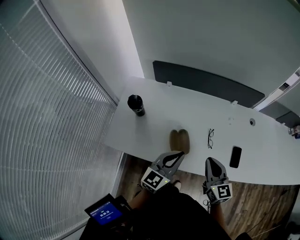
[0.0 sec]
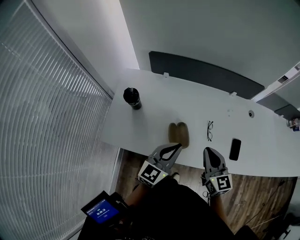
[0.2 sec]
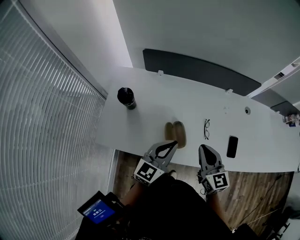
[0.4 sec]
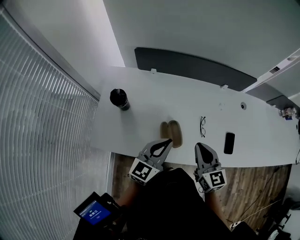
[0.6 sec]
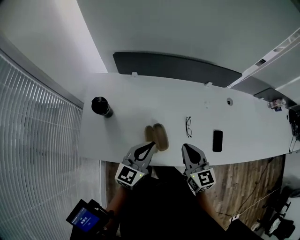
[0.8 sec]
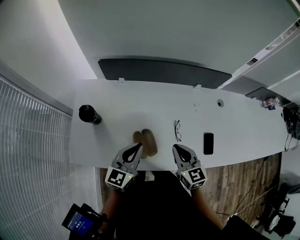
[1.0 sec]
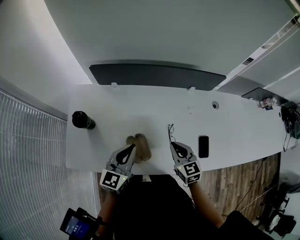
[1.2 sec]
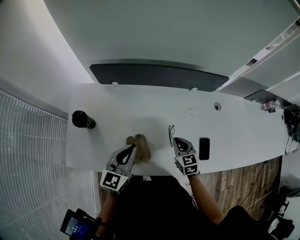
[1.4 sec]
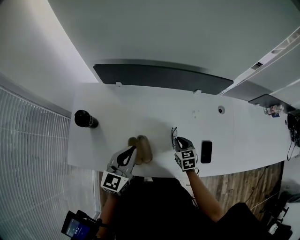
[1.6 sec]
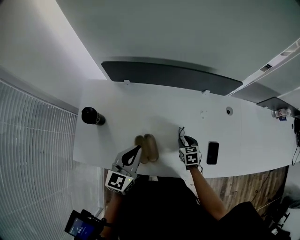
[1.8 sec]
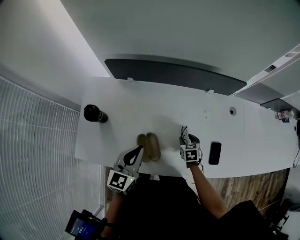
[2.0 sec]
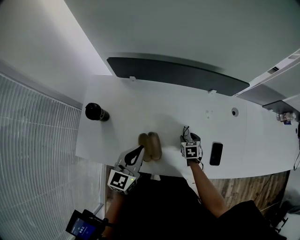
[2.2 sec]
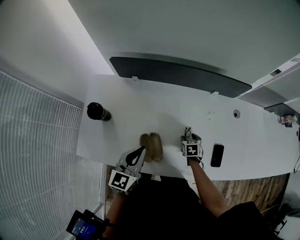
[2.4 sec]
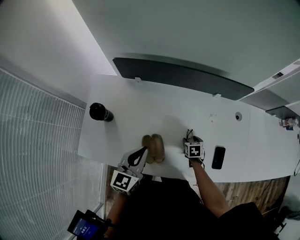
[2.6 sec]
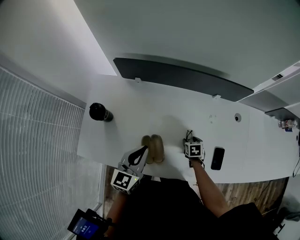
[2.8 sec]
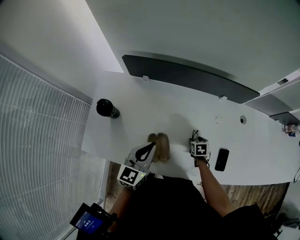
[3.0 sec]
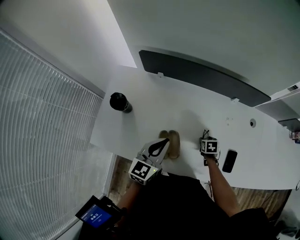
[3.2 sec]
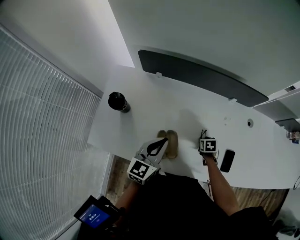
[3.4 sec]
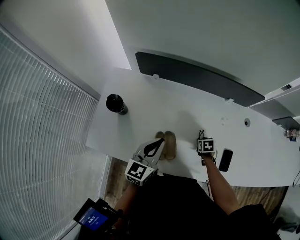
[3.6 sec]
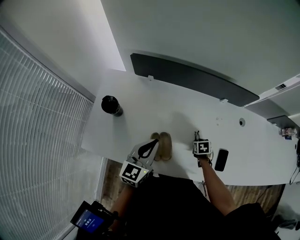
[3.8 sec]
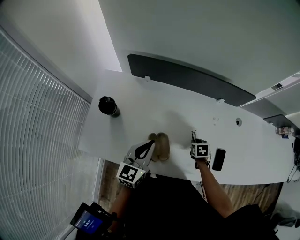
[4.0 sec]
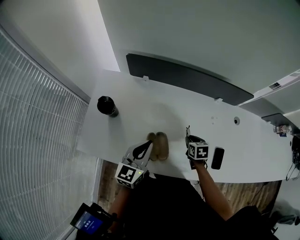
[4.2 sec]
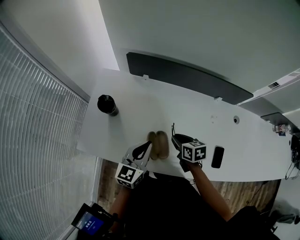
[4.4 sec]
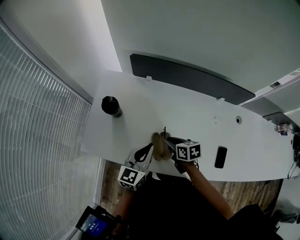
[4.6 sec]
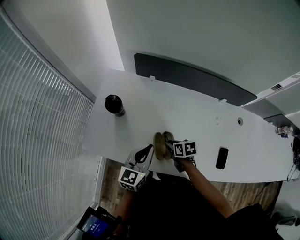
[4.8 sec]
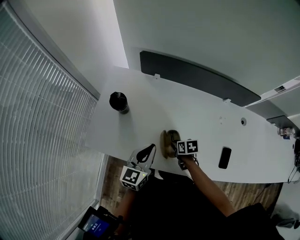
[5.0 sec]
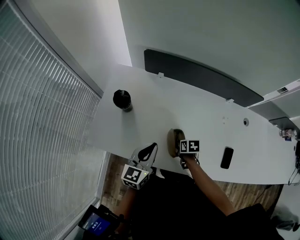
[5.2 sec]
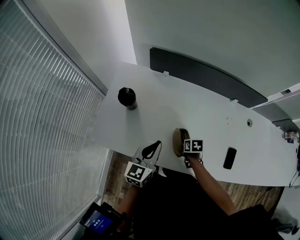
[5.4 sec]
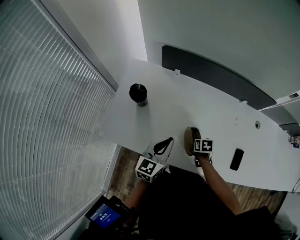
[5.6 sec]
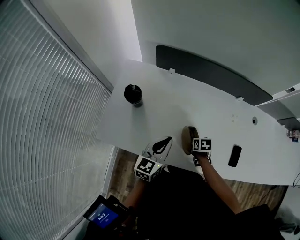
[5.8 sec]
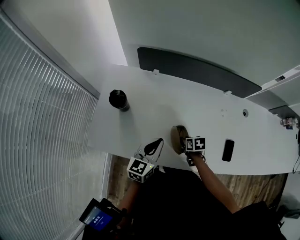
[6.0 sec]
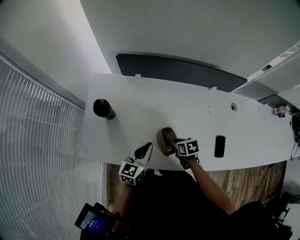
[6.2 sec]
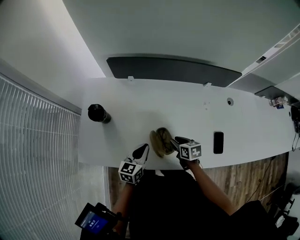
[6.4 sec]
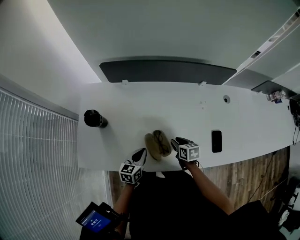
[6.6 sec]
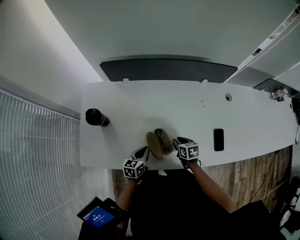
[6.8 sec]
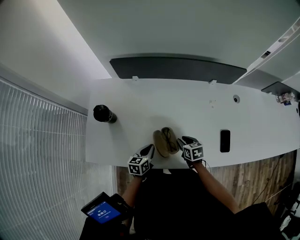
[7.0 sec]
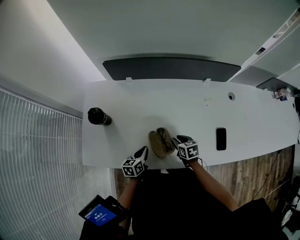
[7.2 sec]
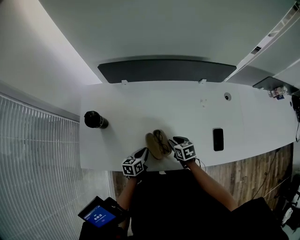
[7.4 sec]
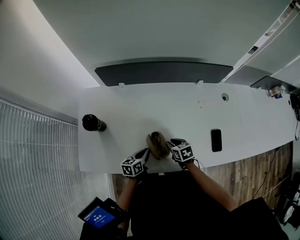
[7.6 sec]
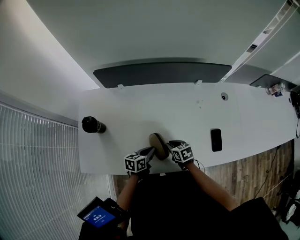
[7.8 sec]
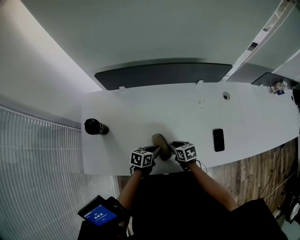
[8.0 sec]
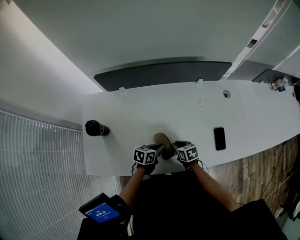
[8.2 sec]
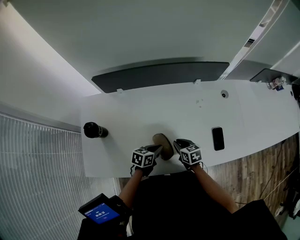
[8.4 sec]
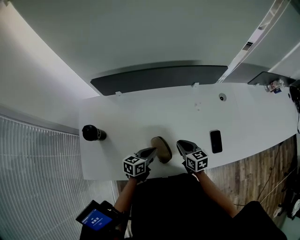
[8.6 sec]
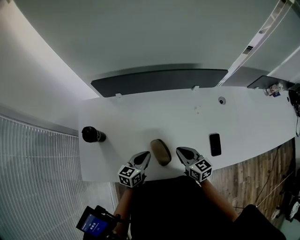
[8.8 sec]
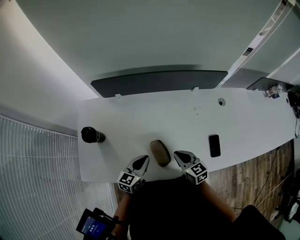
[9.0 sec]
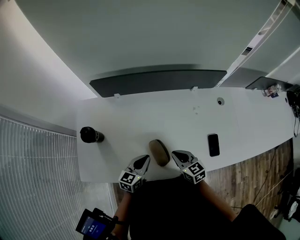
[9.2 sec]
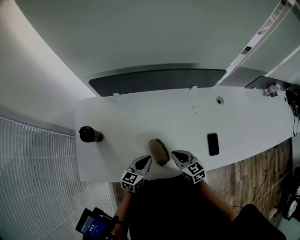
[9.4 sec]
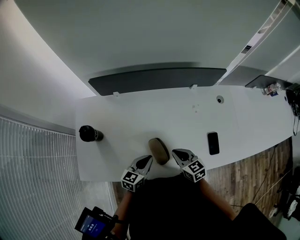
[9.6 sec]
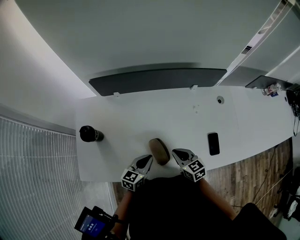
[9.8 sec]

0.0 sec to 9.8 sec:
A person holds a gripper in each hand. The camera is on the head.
0.0 sec to 1.4 sec: The left gripper travels forward by about 10 cm, while the right gripper shifts roughly 20 cm downward and forward, and swivels approximately 20 degrees.
1.4 sec to 2.8 sec: The right gripper heads downward, covering some 15 cm, changes its angle by approximately 30 degrees, and opens its fingers.
2.8 sec to 4.2 sec: The right gripper goes approximately 10 cm upward and to the left, and closes.
4.2 sec to 5.6 sec: The left gripper moves roughly 5 cm, while the right gripper travels to the left and downward by about 10 cm.
5.6 sec to 7.0 sec: The left gripper heads downward, covering approximately 20 cm, and turns by approximately 30 degrees, while the right gripper moves about 5 cm.
7.0 sec to 8.4 sec: The left gripper is displaced to the right by approximately 10 cm, and swivels some 30 degrees.
8.4 sec to 9.8 sec: The grippers both shift upward by roughly 5 cm. The left gripper turns by about 30 degrees.

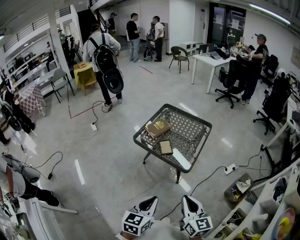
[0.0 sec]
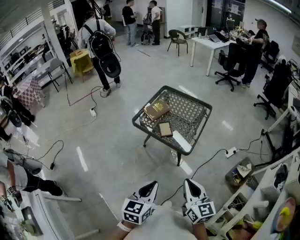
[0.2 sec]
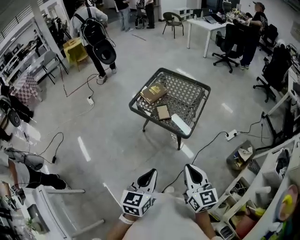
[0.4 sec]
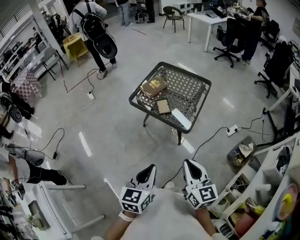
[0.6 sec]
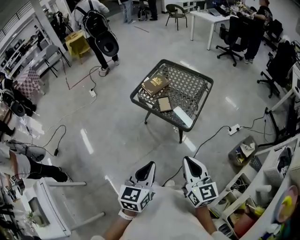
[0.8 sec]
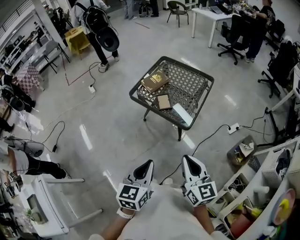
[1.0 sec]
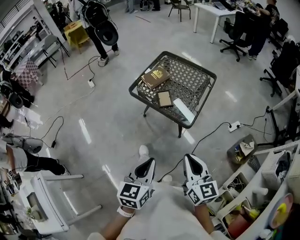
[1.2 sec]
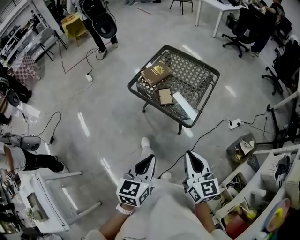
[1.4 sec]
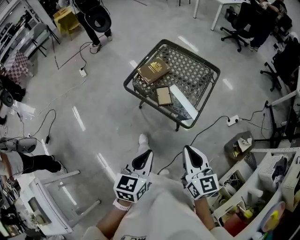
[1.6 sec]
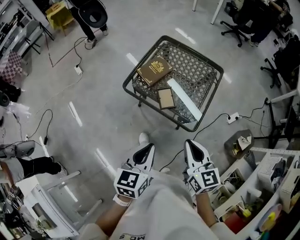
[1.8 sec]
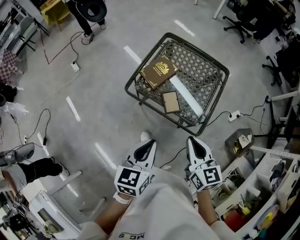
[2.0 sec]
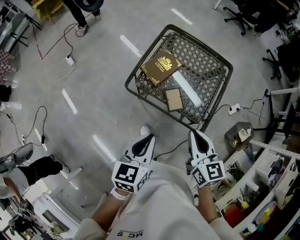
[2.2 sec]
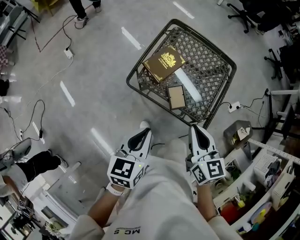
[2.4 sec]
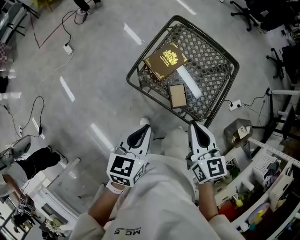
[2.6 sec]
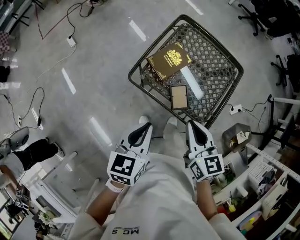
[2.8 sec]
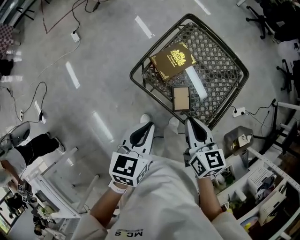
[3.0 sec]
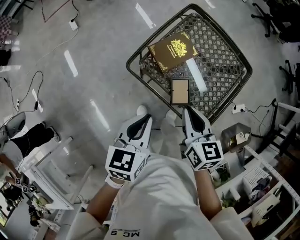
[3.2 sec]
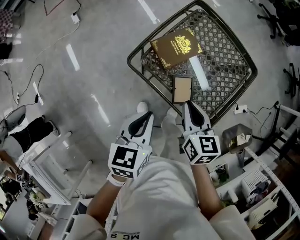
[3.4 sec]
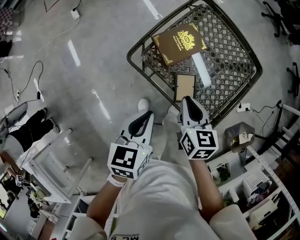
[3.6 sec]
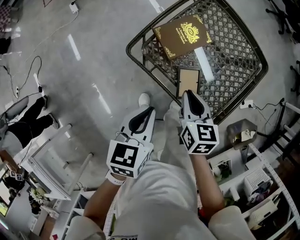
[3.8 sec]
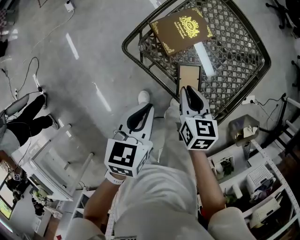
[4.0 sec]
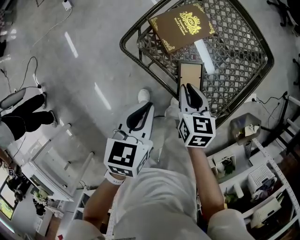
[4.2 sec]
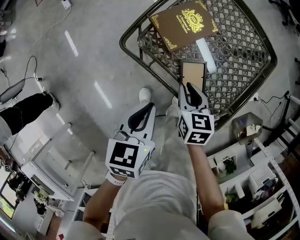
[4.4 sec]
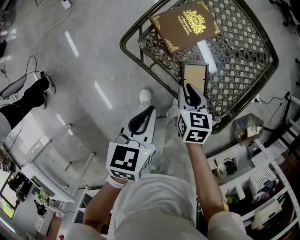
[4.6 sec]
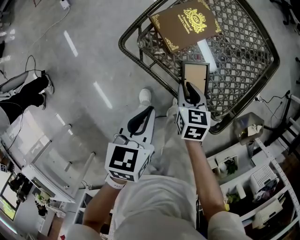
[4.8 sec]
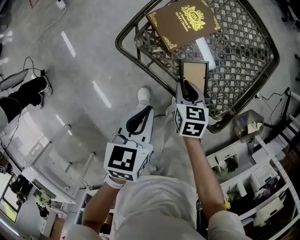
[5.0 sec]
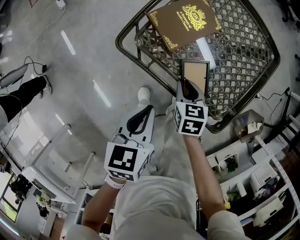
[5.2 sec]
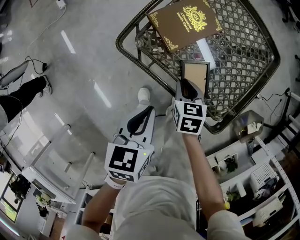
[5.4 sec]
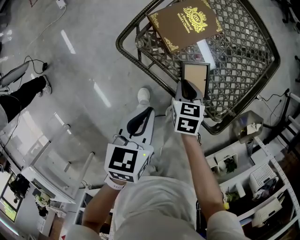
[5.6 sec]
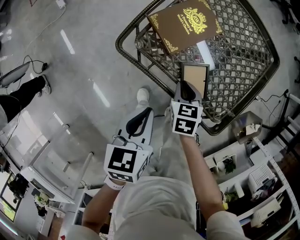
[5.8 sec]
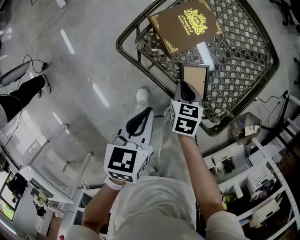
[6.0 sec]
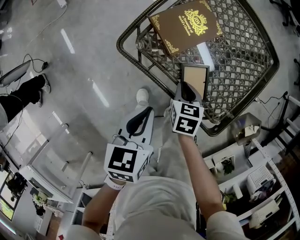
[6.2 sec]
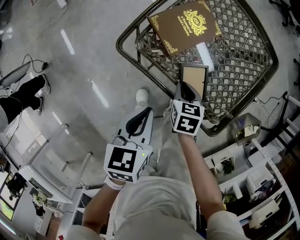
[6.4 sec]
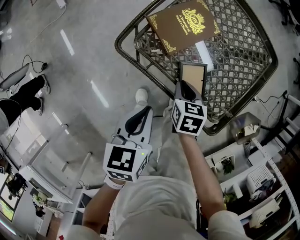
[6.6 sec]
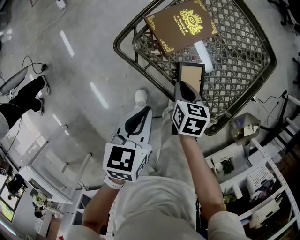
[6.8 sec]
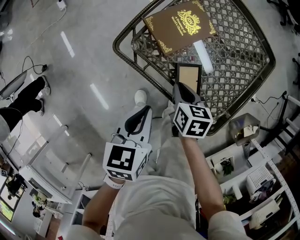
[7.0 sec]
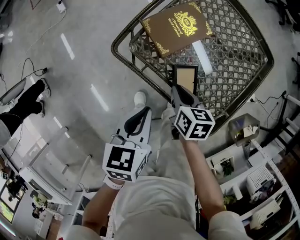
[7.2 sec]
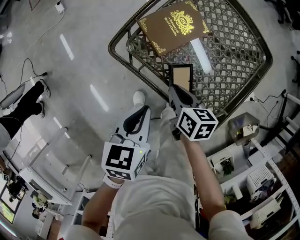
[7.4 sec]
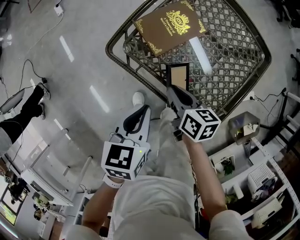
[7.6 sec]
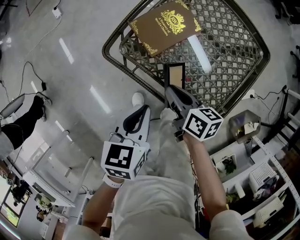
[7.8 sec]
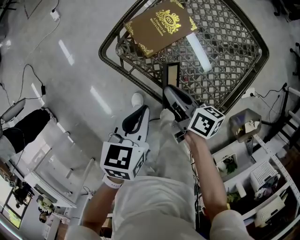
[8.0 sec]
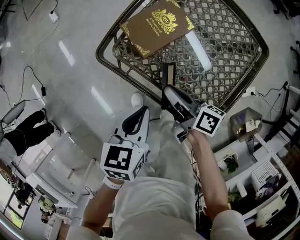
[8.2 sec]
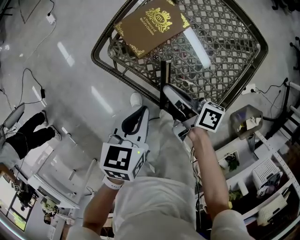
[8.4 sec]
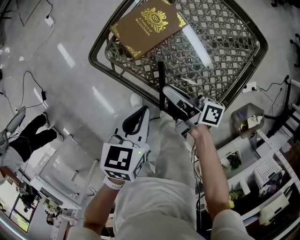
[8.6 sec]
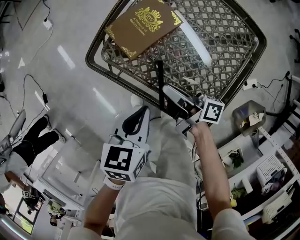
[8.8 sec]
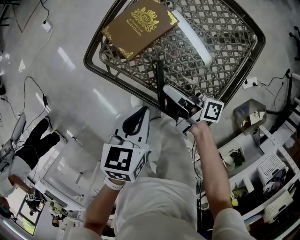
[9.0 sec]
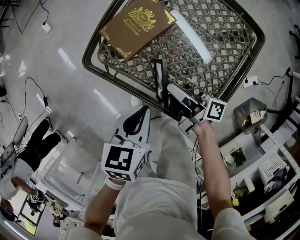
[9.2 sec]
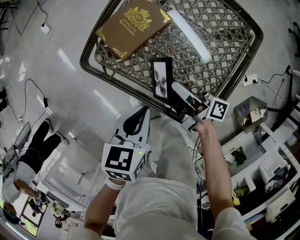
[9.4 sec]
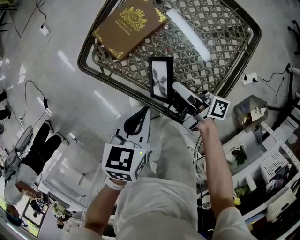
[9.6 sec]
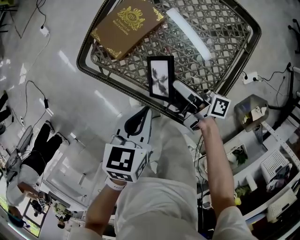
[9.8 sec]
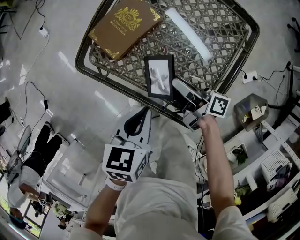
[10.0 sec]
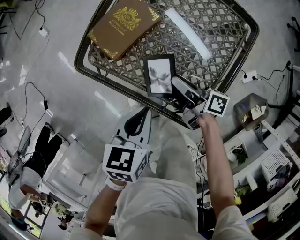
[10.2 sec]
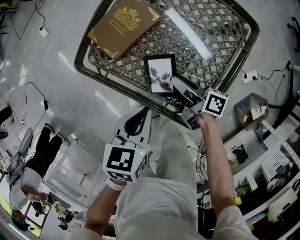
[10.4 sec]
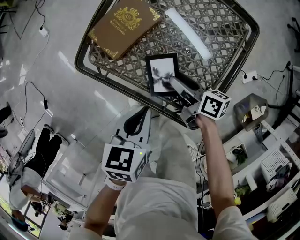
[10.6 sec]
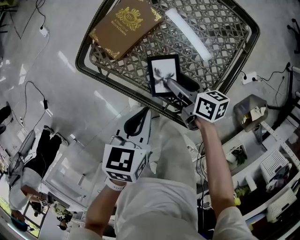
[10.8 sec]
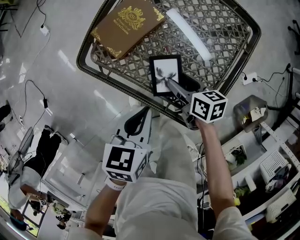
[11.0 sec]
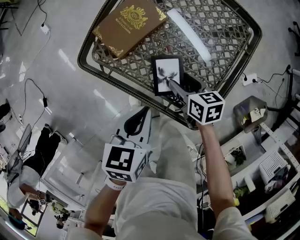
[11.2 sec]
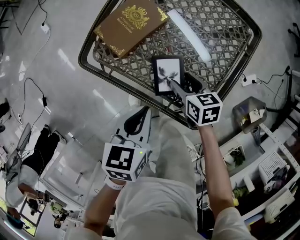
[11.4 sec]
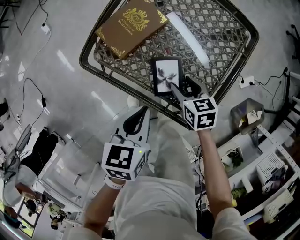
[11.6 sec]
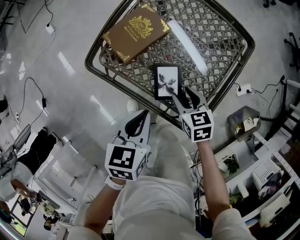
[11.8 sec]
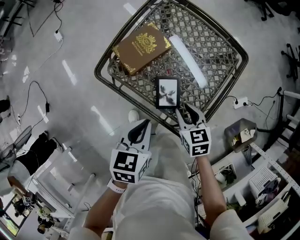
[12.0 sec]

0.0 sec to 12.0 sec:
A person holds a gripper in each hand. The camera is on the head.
0.0 sec to 1.6 sec: The two grippers go about 15 cm forward.
1.6 sec to 3.0 sec: Both grippers travel together forward and to the left, approximately 30 cm.
3.0 sec to 4.4 sec: The right gripper goes some 25 cm downward; the left gripper heads downward, covering roughly 15 cm.
4.4 sec to 6.0 sec: The right gripper goes roughly 10 cm downward.
6.0 sec to 7.6 sec: The right gripper goes roughly 5 cm upward, and swivels some 40 degrees.
7.6 sec to 9.0 sec: The grippers both shift to the right by roughly 5 cm. The right gripper angles its fingers upward, by about 40 degrees.
9.0 sec to 10.4 sec: The left gripper moves approximately 5 cm. Meanwhile the right gripper shifts roughly 10 cm to the right, changes its angle by roughly 20 degrees, and opens.
10.4 sec to 12.0 sec: The left gripper moves about 5 cm, while the right gripper goes approximately 5 cm backward, and rolls counterclockwise, seen from behind, by roughly 50 degrees.

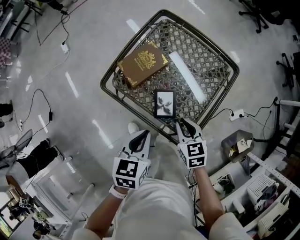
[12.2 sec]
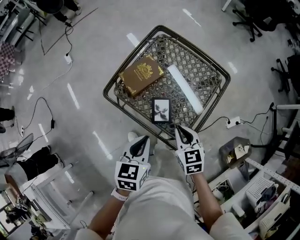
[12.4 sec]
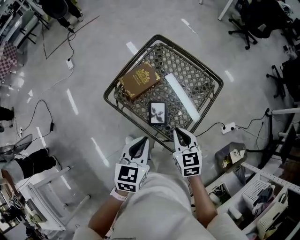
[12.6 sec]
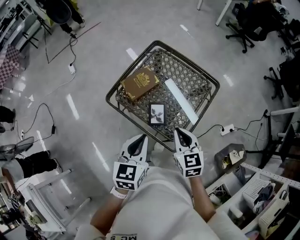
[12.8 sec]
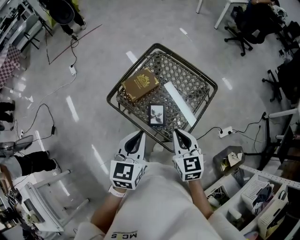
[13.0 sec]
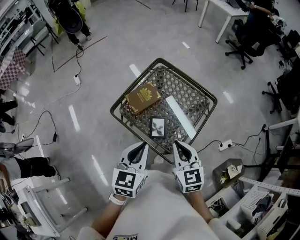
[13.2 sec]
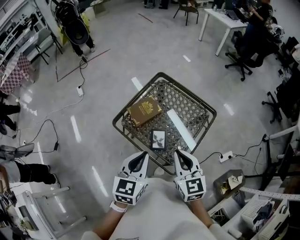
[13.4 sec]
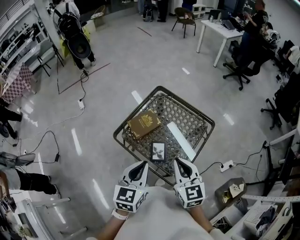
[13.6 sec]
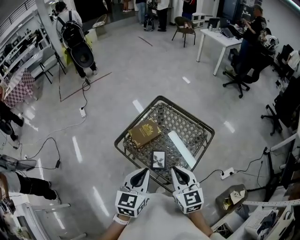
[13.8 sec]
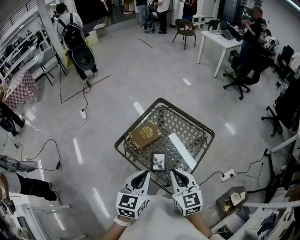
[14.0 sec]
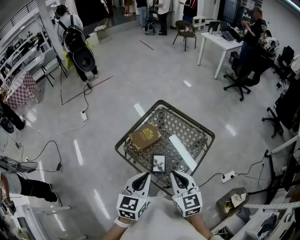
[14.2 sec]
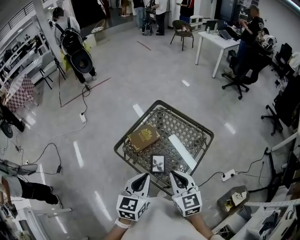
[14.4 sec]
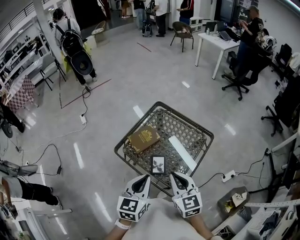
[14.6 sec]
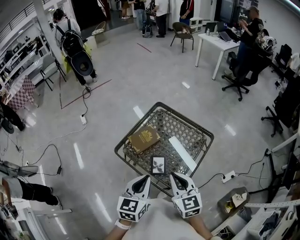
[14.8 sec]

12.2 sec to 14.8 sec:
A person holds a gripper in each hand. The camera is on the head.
12.2 sec to 13.4 sec: Both grippers move upward, roughly 20 cm. The right gripper turns by about 30 degrees, while the left gripper rotates roughly 20 degrees.
13.4 sec to 14.8 sec: The grippers stay close to where they were, moving slightly.
